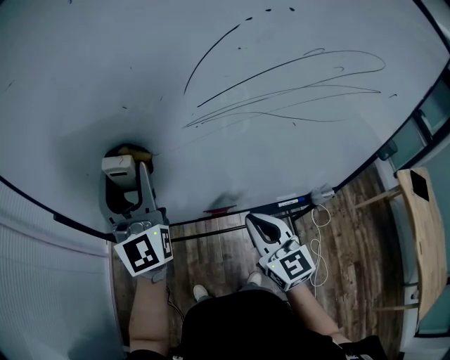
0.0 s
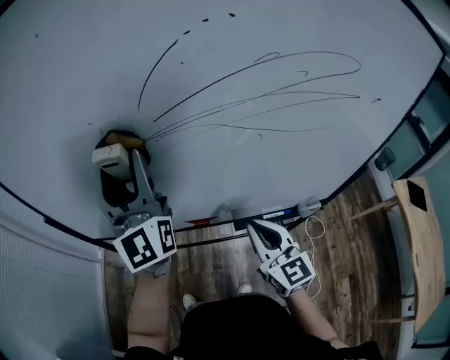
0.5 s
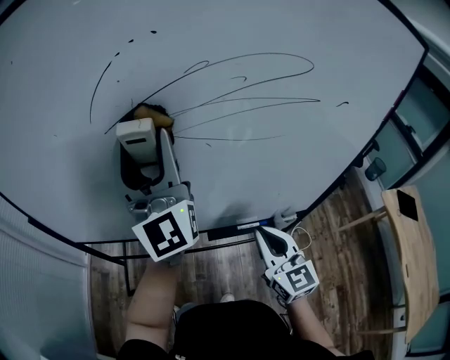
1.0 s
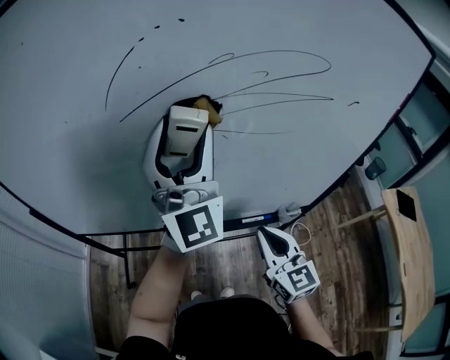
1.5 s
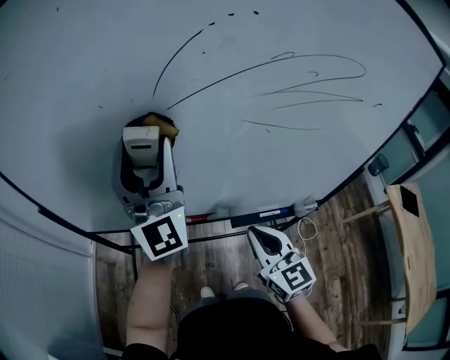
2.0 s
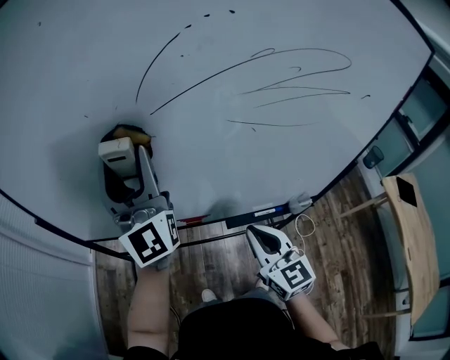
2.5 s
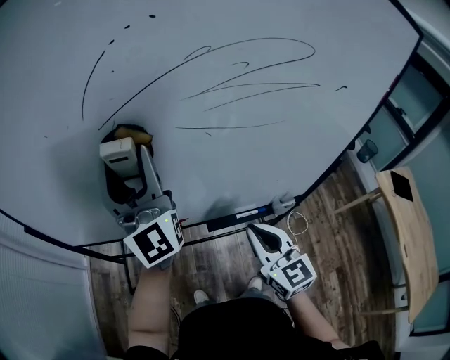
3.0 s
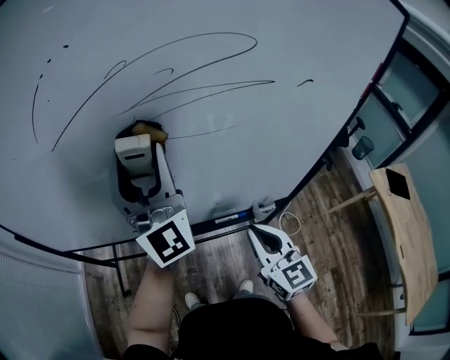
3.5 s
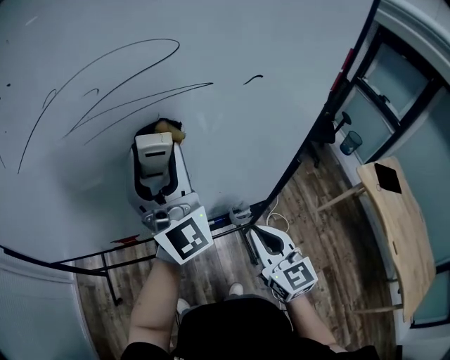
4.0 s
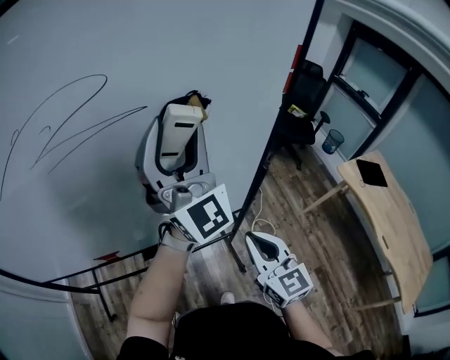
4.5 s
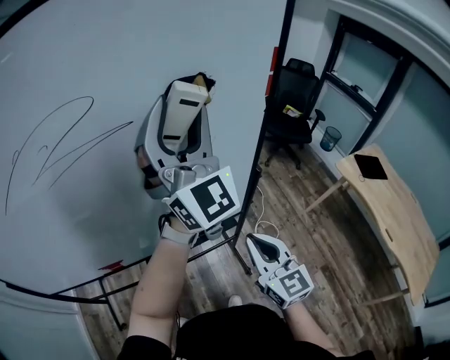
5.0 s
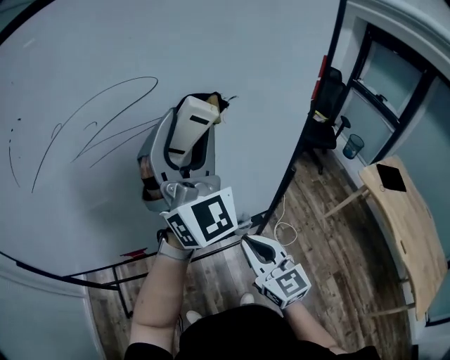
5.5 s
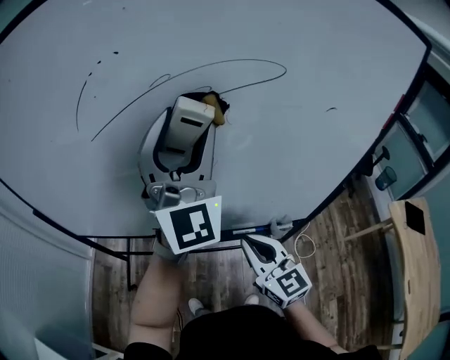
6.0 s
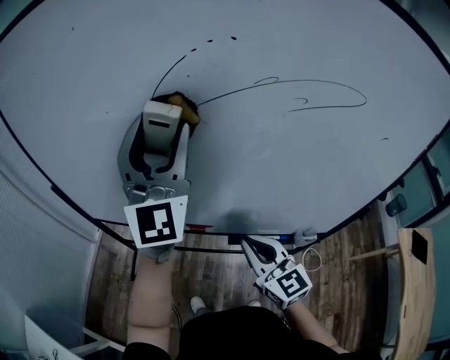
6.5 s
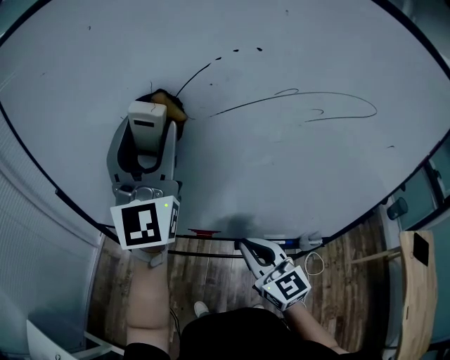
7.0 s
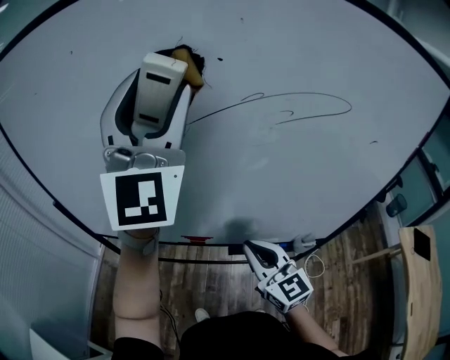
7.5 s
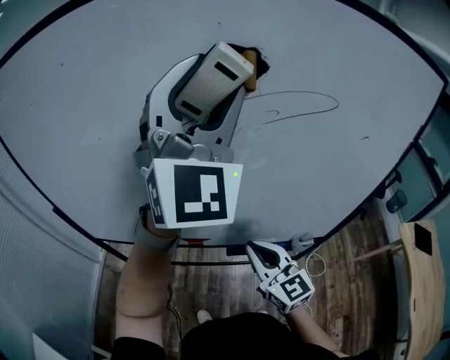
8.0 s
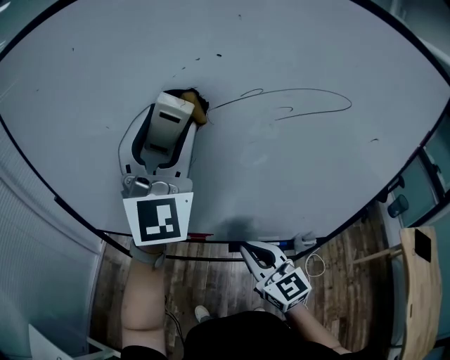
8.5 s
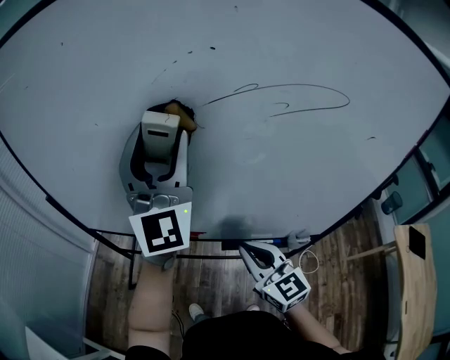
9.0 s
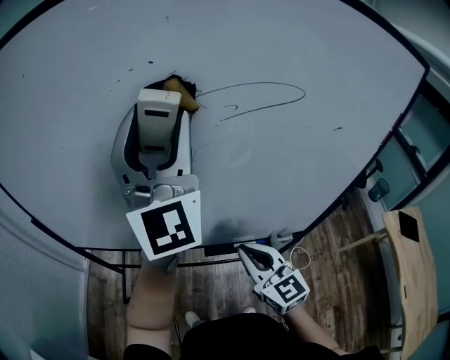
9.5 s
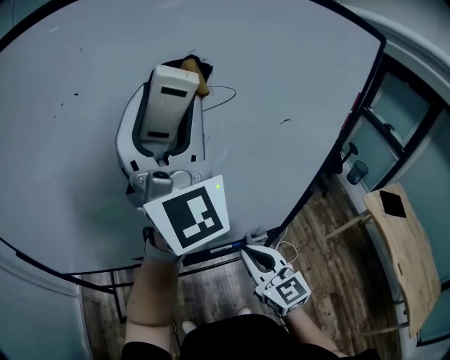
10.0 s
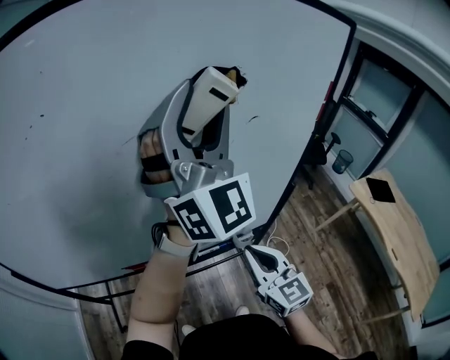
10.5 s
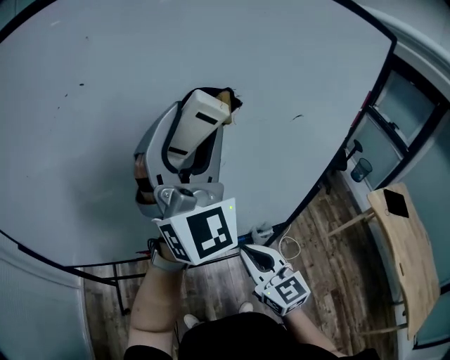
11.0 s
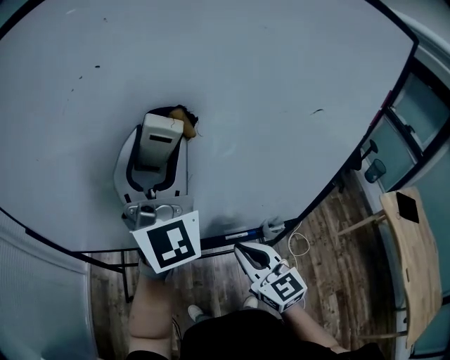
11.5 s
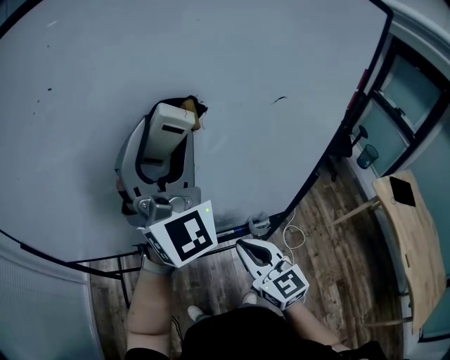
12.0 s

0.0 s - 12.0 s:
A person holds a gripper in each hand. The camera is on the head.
0.0 s - 2.0 s: The right gripper travels to the right and back again, about 20 cm each way. Meanwhile the left gripper shifts roughly 10 cm to the right.
2.0 s - 4.0 s: Both grippers move to the right, roughly 30 cm.
4.0 s - 6.0 s: The left gripper travels upward by about 10 cm, and travels to the right and back again, about 20 cm each way; the right gripper is displaced to the left by approximately 15 cm.
6.0 s - 8.0 s: The left gripper goes about 10 cm upward, and goes to the left and returns, approximately 25 cm each way. The right gripper travels to the left by some 10 cm.
8.0 s - 10.0 s: The two grippers go approximately 10 cm to the right.
10.0 s - 12.0 s: The right gripper swings left and right, roughly 10 cm each way, with 2 reversals. Meanwhile the left gripper goes left and right, some 20 cm each way, reversing 2 times.

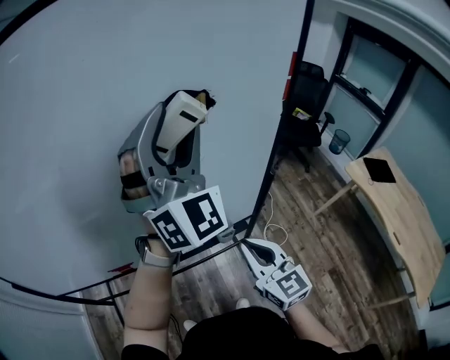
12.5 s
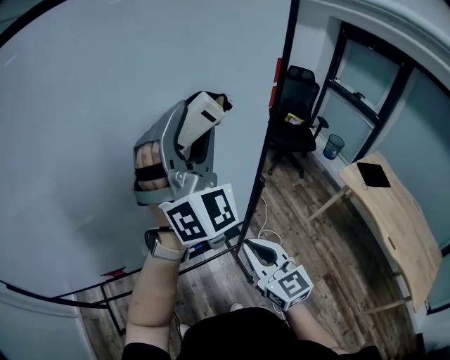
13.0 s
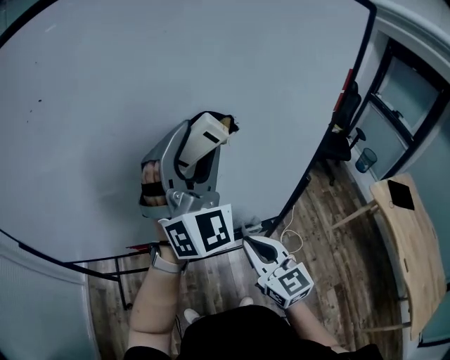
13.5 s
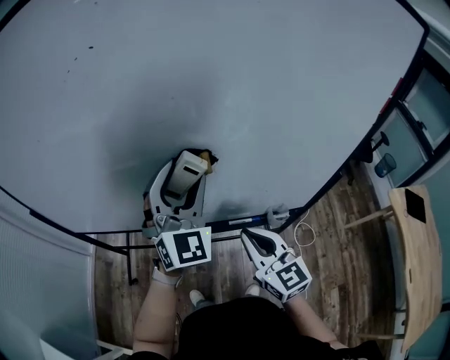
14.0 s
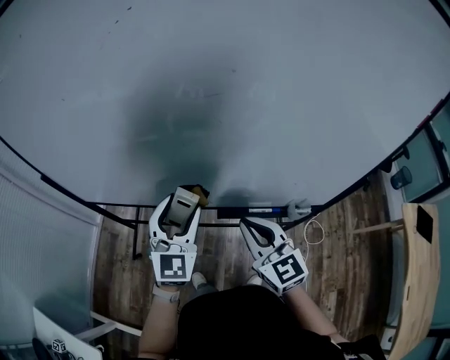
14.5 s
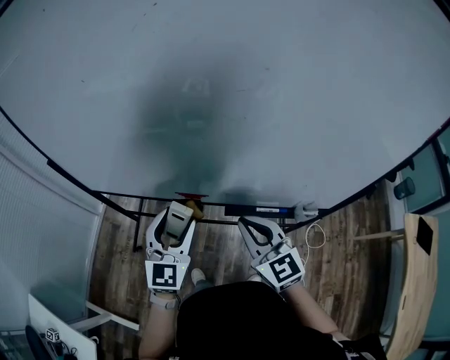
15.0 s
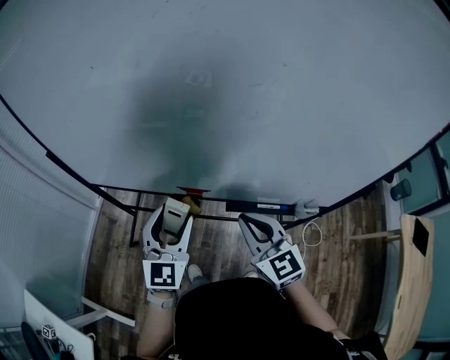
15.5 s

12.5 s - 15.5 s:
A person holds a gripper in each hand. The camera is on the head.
12.5 s - 14.0 s: The right gripper travels to the left by some 20 cm; the left gripper moves to the left and downward, some 30 cm, and rotates roughly 20 degrees.
14.0 s - 15.5 s: The left gripper heads to the left and downward, covering roughly 25 cm, and rotates roughly 30 degrees. Meanwhile the right gripper goes approximately 10 cm to the left.

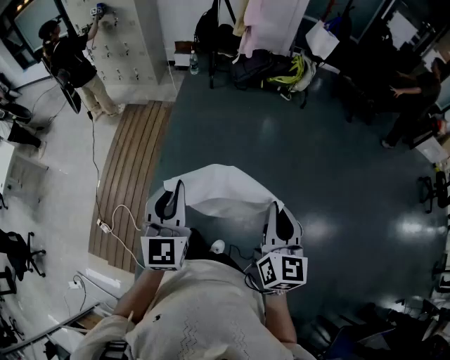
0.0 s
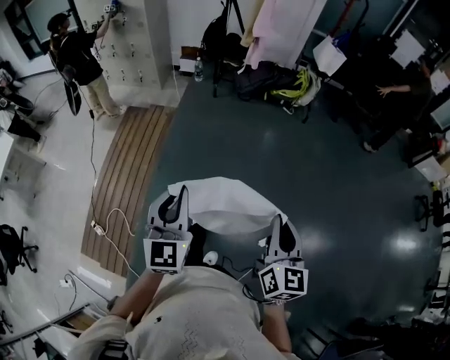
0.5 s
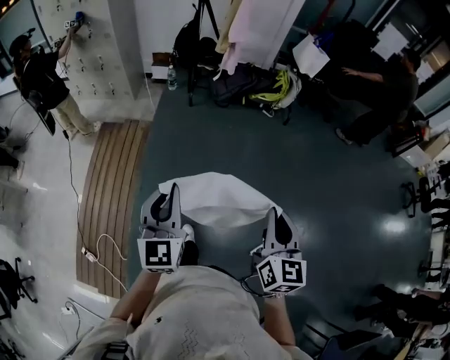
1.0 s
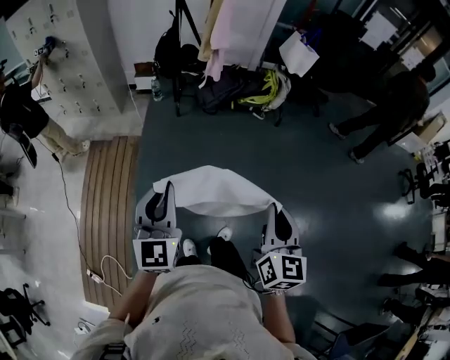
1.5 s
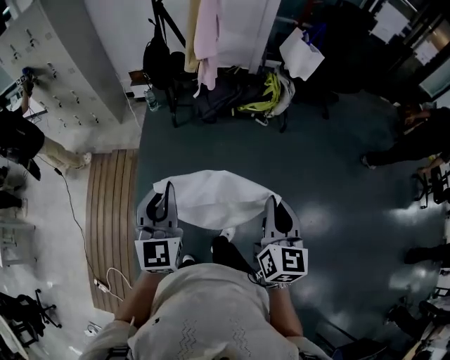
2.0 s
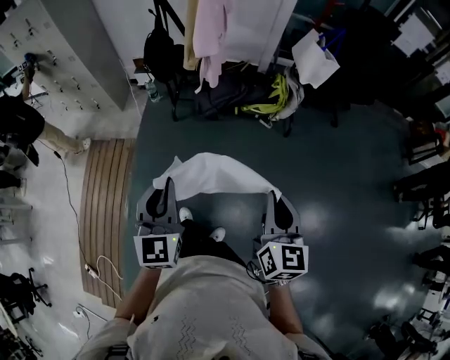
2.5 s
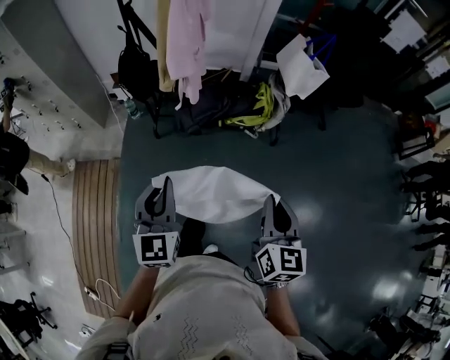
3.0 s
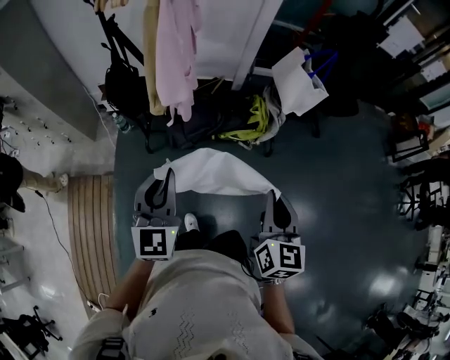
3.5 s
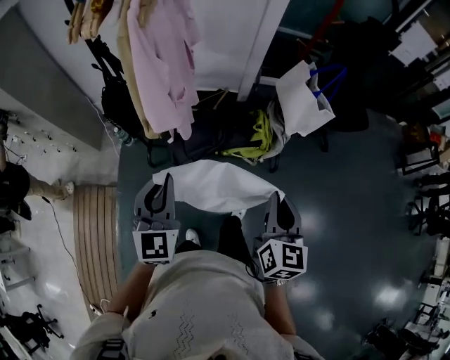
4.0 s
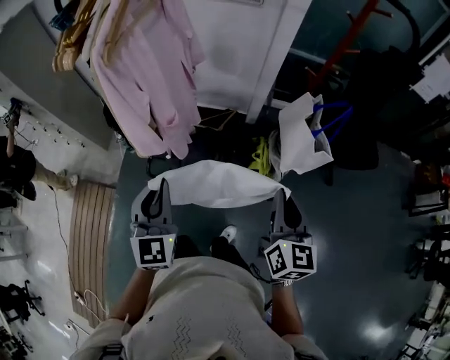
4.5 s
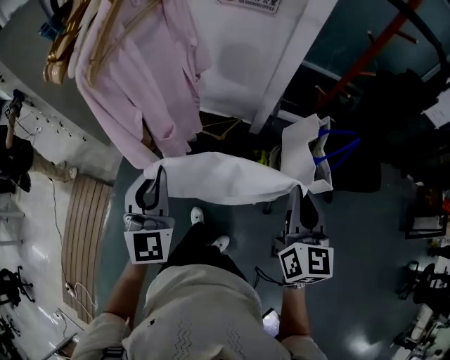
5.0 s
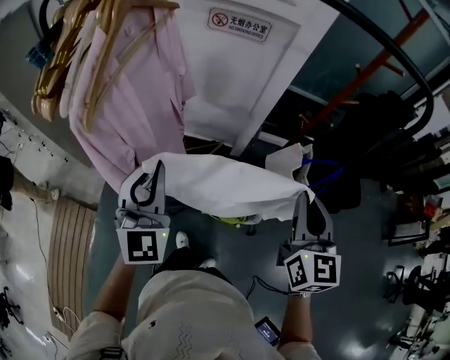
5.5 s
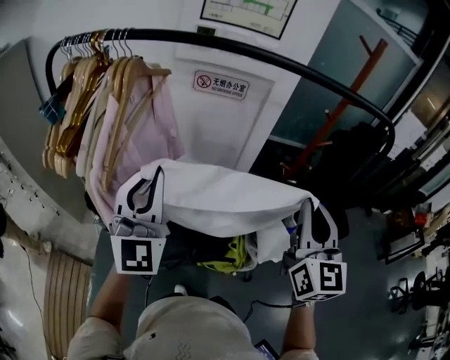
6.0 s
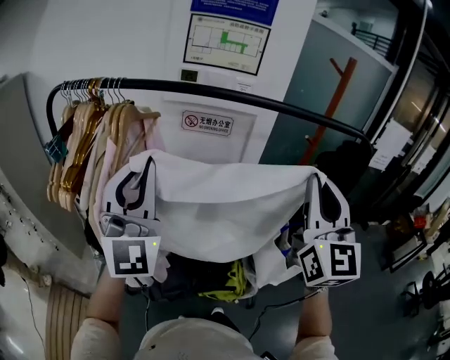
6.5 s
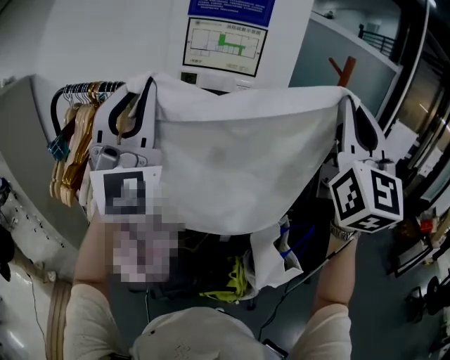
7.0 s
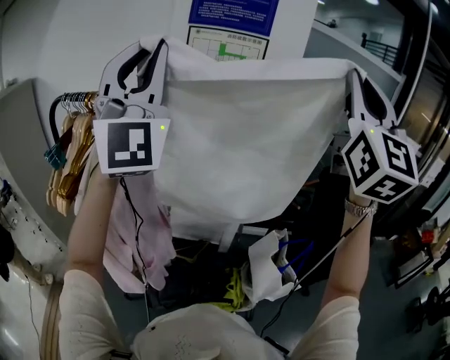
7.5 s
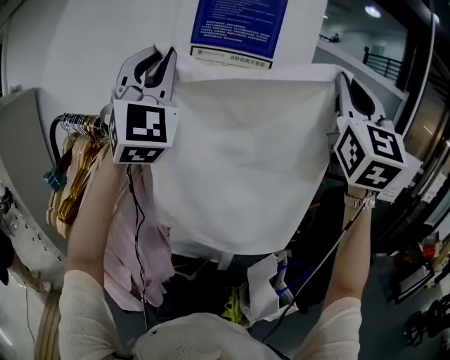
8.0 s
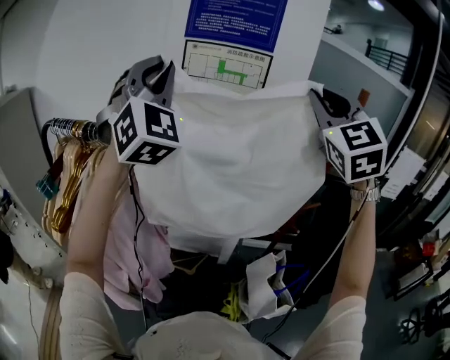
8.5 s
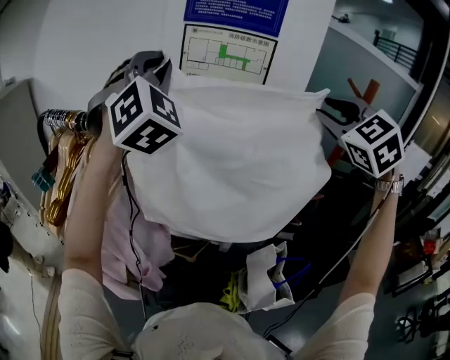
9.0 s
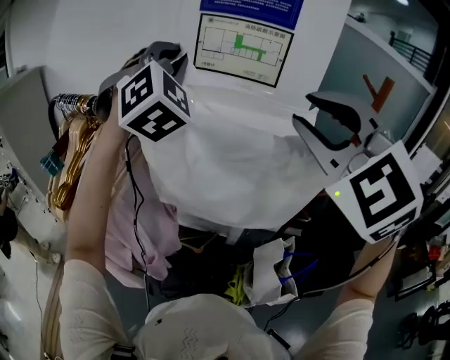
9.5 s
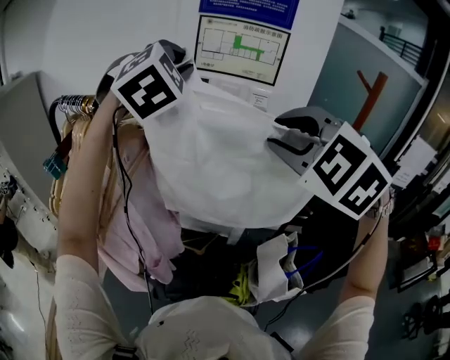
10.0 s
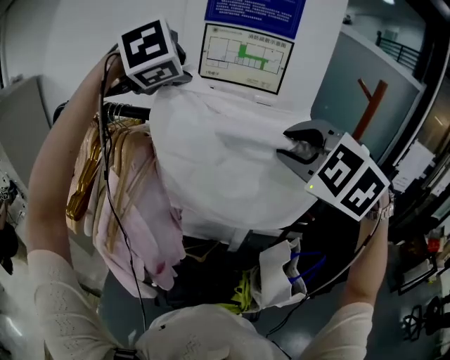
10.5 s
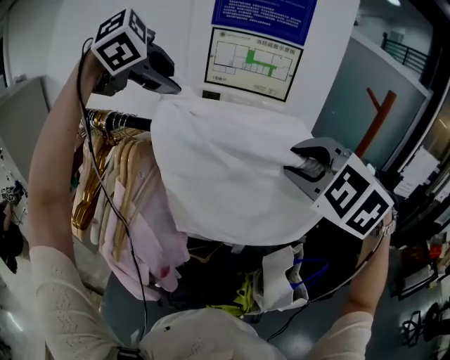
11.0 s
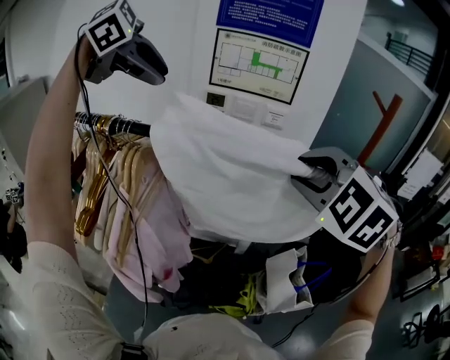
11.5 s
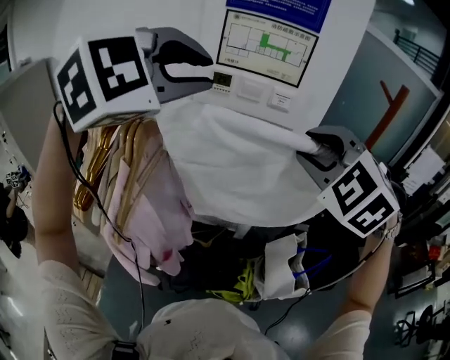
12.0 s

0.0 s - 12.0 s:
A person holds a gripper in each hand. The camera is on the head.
0.0 s - 2.0 s: The two grippers travel together, forward, roughly 50 cm.
2.0 s - 4.0 s: The two grippers travel together, forward, approximately 60 cm.
4.0 s - 6.0 s: Both grippers travel together forward and upward, approximately 40 cm. The left gripper turns by about 30 degrees. Meanwhile the right gripper rotates about 30 degrees.
6.0 s - 8.0 s: The grippers both shift upward and forward by some 40 cm. The left gripper turns by some 30 degrees, while the right gripper rotates roughly 30 degrees.
8.0 s - 10.0 s: The left gripper travels downward and forward by roughly 15 cm, and points its fingers about 50 degrees further downward. The right gripper moves downward and to the left, about 25 cm, angles its fingers downward, by about 60 degrees, and opens up.
10.0 s - 12.0 s: The left gripper shifts by about 10 cm, and rotates some 30 degrees.
